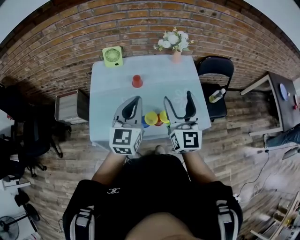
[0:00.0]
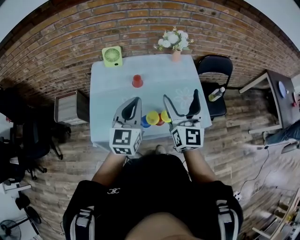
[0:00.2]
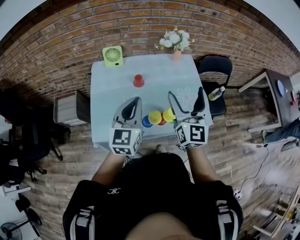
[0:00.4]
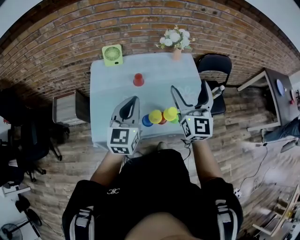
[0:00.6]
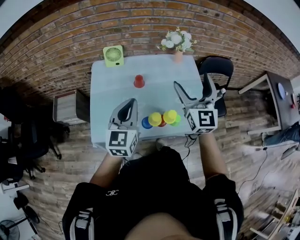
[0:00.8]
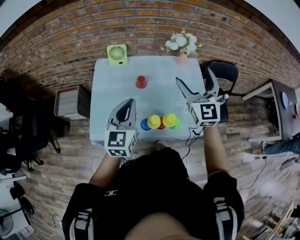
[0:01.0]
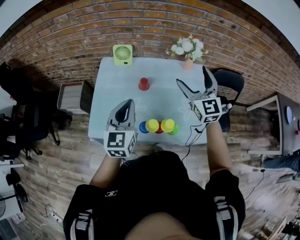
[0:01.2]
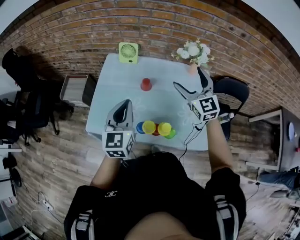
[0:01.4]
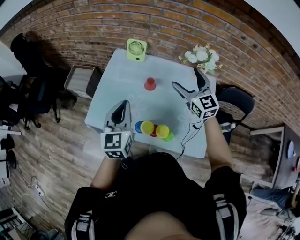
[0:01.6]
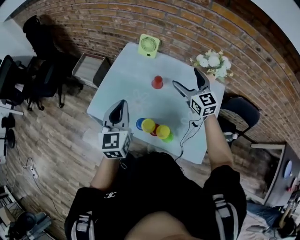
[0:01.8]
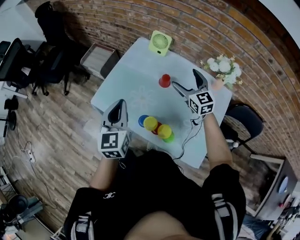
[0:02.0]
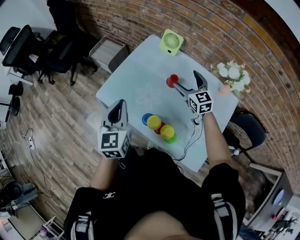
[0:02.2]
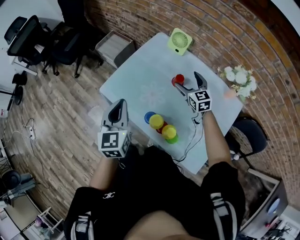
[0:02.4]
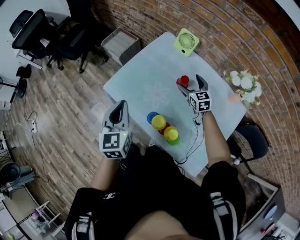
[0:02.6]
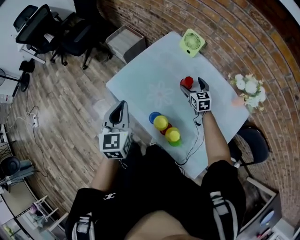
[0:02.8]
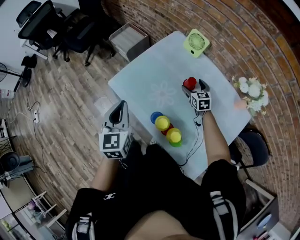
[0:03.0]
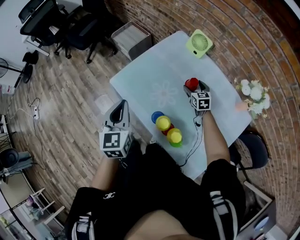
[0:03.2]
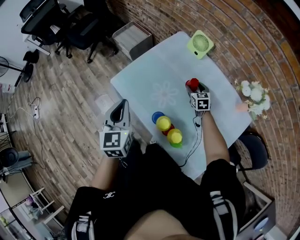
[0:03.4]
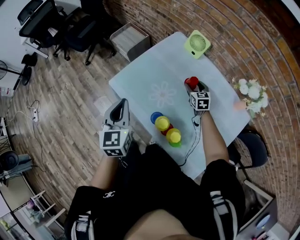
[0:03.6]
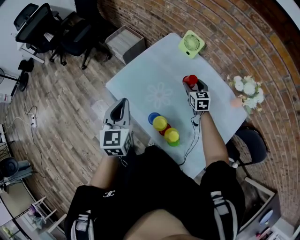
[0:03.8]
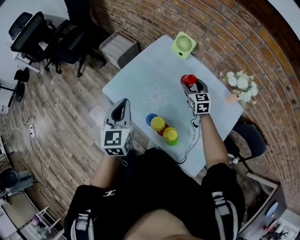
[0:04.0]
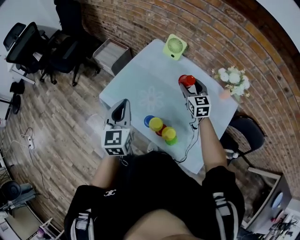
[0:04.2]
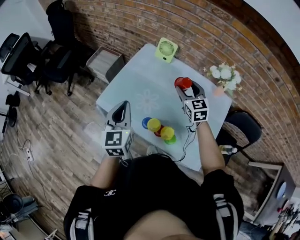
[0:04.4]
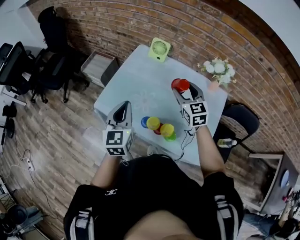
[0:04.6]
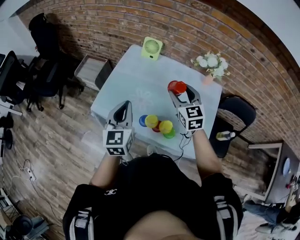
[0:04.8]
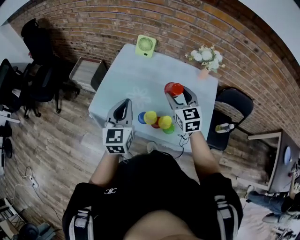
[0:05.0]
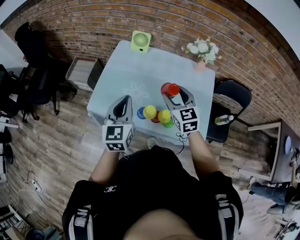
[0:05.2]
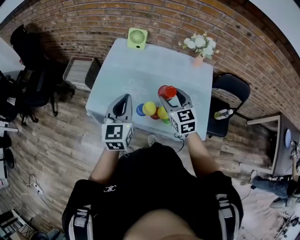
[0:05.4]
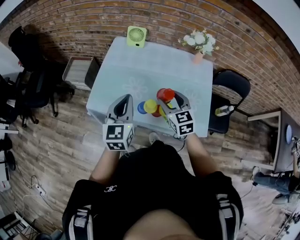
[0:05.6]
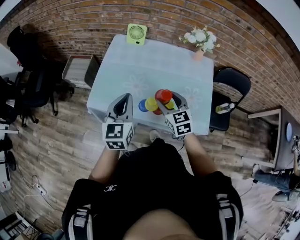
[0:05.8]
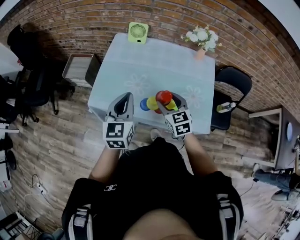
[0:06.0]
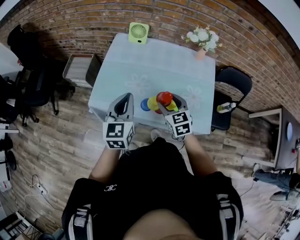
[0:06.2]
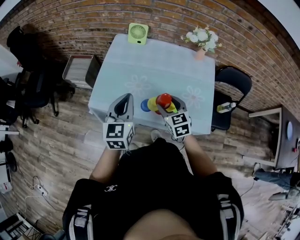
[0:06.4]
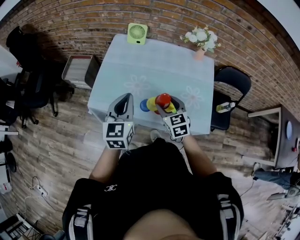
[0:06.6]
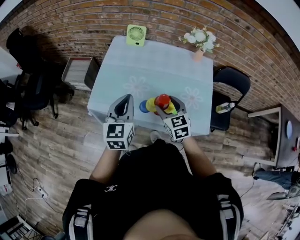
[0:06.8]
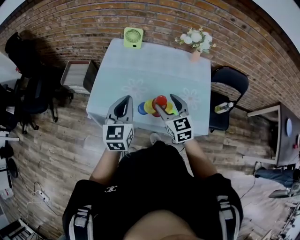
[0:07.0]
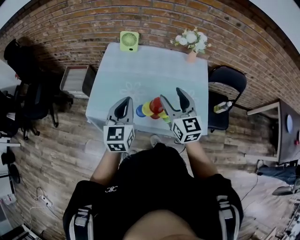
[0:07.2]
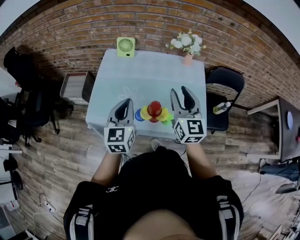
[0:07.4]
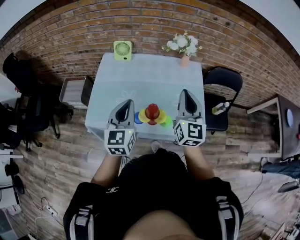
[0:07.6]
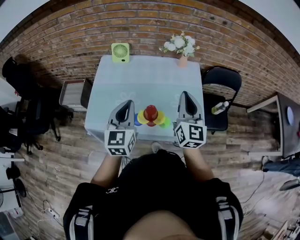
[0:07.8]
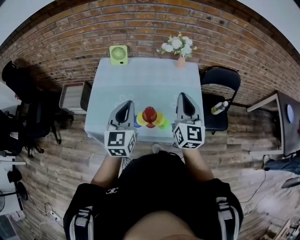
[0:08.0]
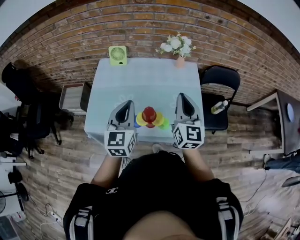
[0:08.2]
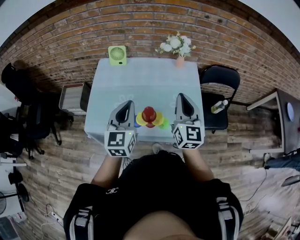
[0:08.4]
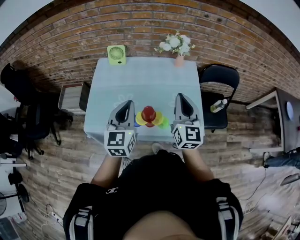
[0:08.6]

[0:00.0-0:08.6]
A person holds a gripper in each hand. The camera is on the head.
0:00.0 to 0:01.4: The right gripper shifts by roughly 20 cm, and changes its angle by approximately 40 degrees, while the left gripper changes place by roughly 5 cm, and changes its angle by roughly 20 degrees.
0:01.4 to 0:02.8: The right gripper goes roughly 25 cm downward, and swivels some 40 degrees, while the left gripper ends up approximately 15 cm from where it was, and swivels some 40 degrees.
0:02.8 to 0:04.4: The left gripper changes place by some 5 cm. Meanwhile the right gripper is displaced upward and backward by some 20 cm, and closes its fingers.
0:04.4 to 0:05.8: The right gripper shifts about 20 cm backward, while the left gripper changes its angle by approximately 20 degrees.
0:05.8 to 0:07.2: The right gripper moves upward, roughly 10 cm, and changes its angle by approximately 20 degrees.
0:07.2 to 0:08.6: The right gripper moves to the right, some 10 cm, rotates some 20 degrees, and closes up, while the left gripper goes about 5 cm to the right.

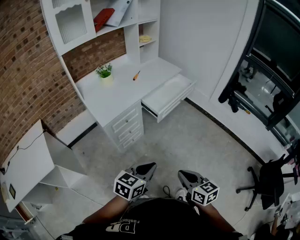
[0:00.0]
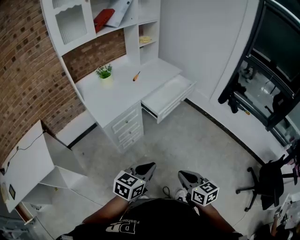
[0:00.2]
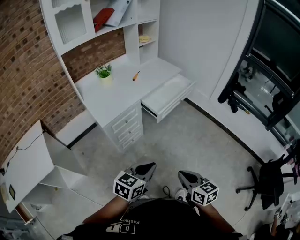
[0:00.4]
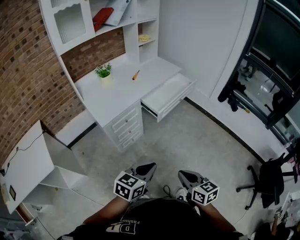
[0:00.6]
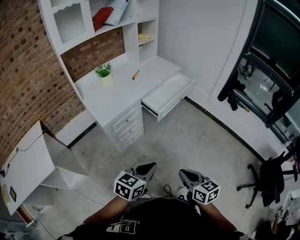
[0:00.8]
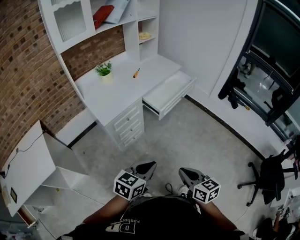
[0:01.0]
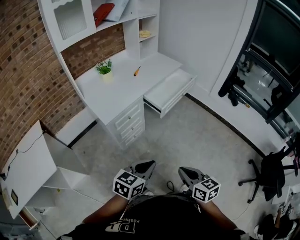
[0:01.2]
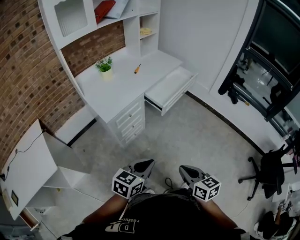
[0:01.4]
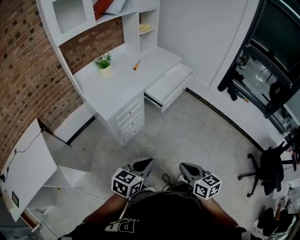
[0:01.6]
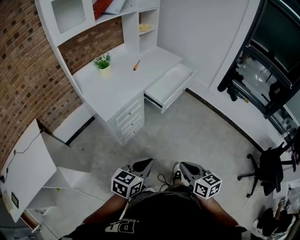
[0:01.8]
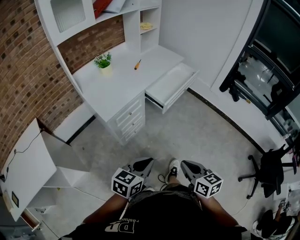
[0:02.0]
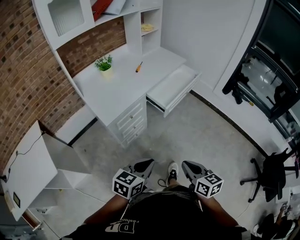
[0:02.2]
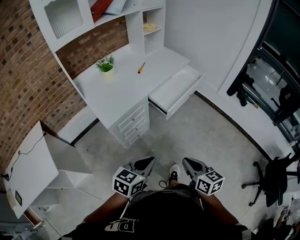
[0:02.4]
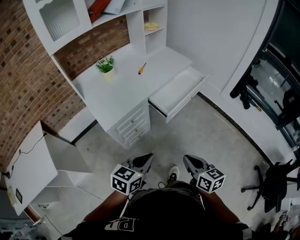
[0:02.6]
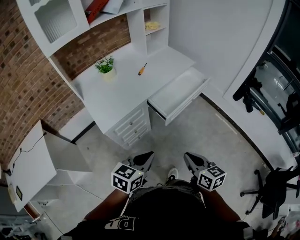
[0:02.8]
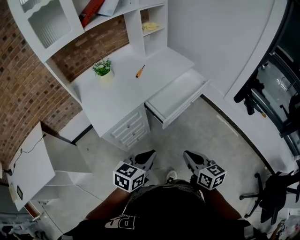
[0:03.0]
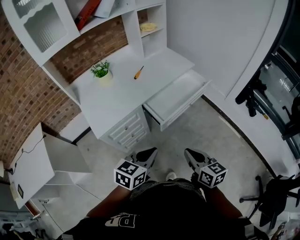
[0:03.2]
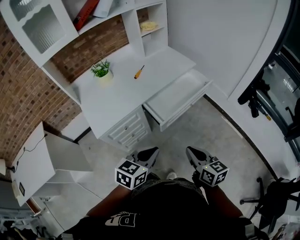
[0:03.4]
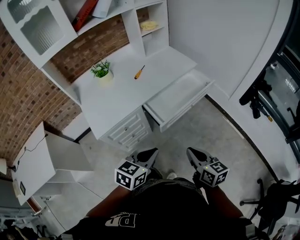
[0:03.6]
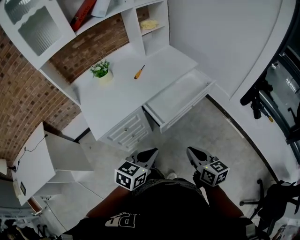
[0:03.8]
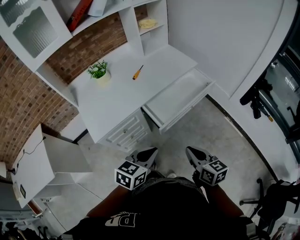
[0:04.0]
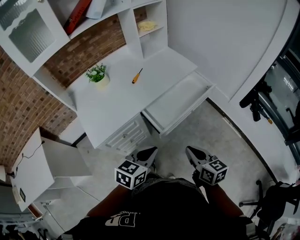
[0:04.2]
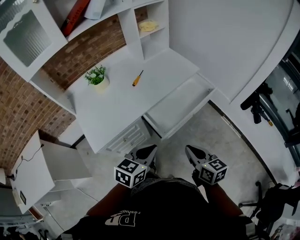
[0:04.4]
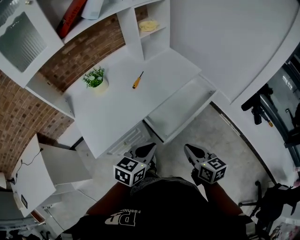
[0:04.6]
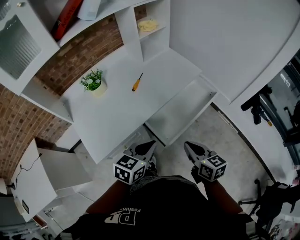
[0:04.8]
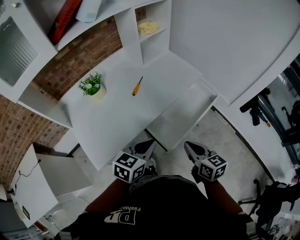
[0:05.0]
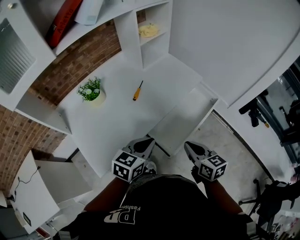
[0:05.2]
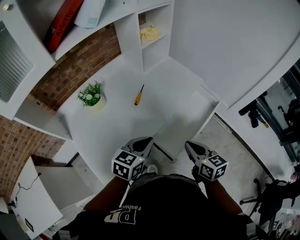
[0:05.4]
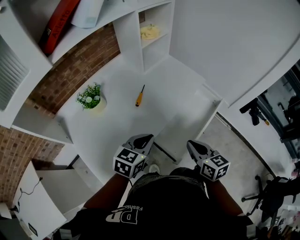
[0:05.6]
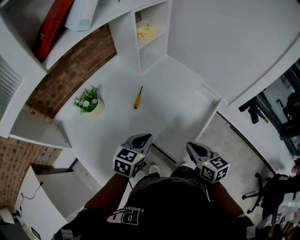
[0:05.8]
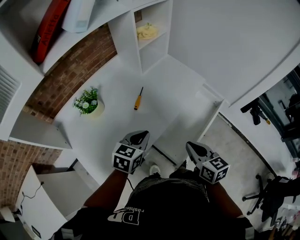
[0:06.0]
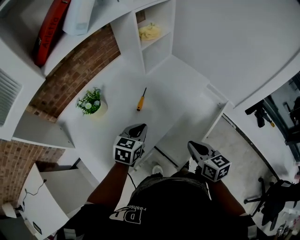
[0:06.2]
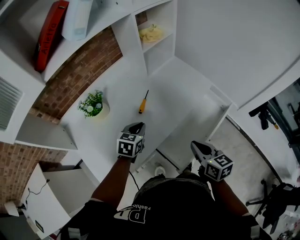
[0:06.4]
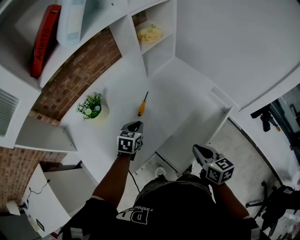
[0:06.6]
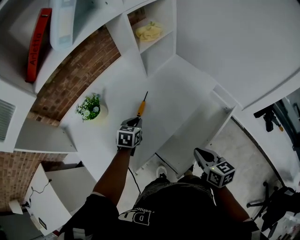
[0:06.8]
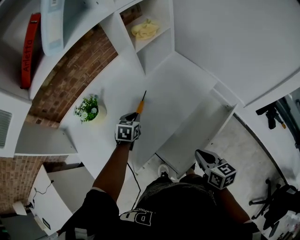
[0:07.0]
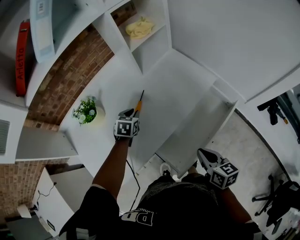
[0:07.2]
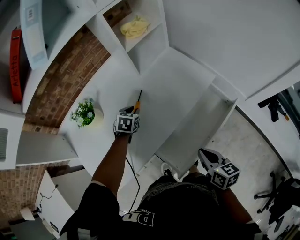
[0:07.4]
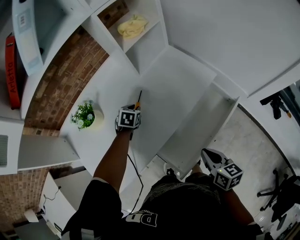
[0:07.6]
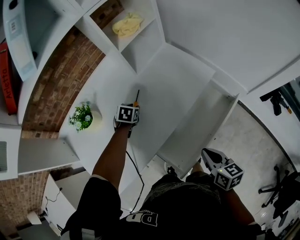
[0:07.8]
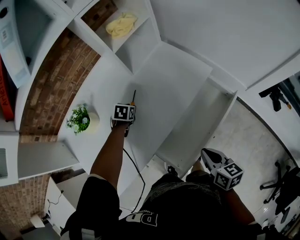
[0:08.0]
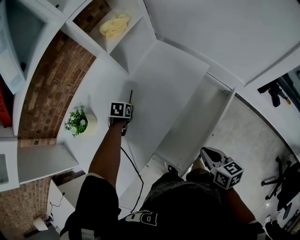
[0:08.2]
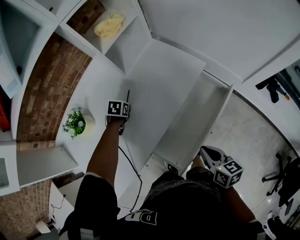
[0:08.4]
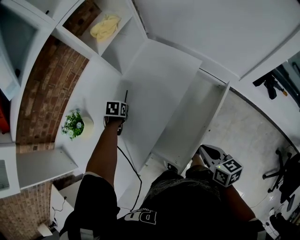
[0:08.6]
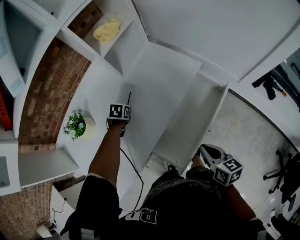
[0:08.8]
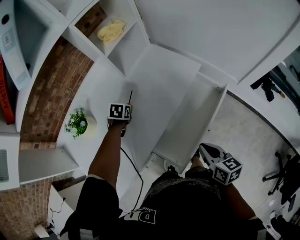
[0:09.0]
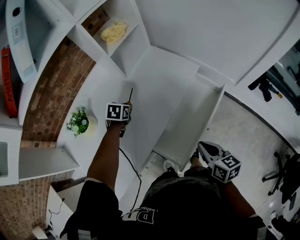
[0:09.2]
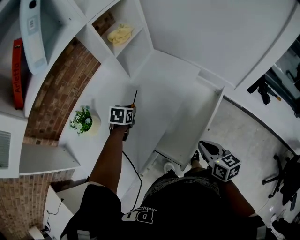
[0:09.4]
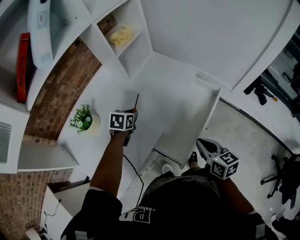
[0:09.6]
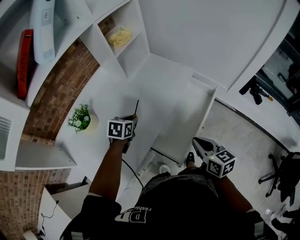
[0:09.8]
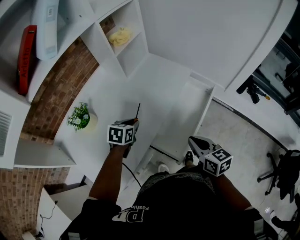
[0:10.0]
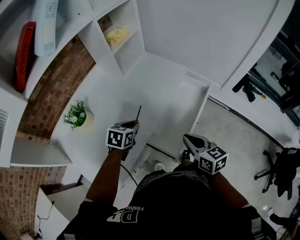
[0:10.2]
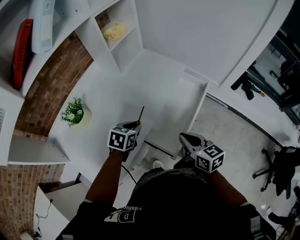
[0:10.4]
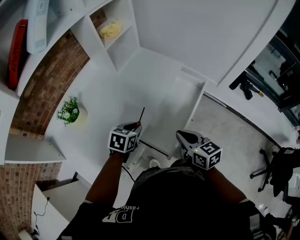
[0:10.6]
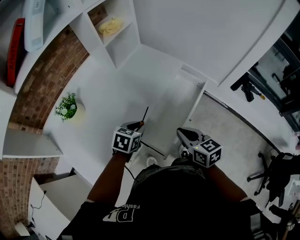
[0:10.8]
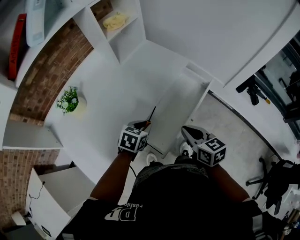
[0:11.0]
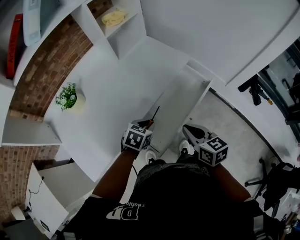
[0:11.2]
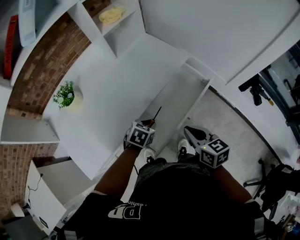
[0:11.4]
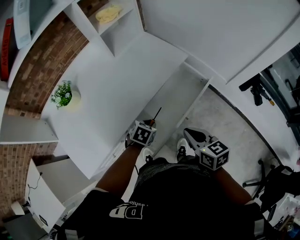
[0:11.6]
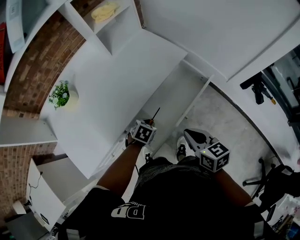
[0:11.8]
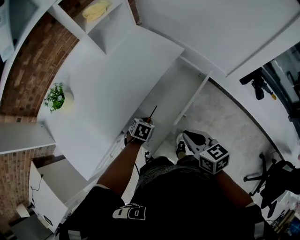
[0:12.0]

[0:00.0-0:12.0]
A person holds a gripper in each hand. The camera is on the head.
0:00.0 to 0:01.6: Both grippers travel together to the left, some 10 cm.
0:01.6 to 0:03.0: Both grippers travel together forward, about 25 cm.
0:03.0 to 0:04.4: Both grippers move forward, approximately 15 cm.
0:04.4 to 0:06.0: The two grippers go about 25 cm forward and to the left.
0:06.0 to 0:07.6: The left gripper shifts approximately 30 cm forward and downward, and rotates about 30 degrees; the right gripper moves to the right and downward, some 10 cm.
0:07.6 to 0:09.0: The grippers move only a little.
0:09.0 to 0:10.4: The right gripper shifts approximately 10 cm to the left, backward and upward. Meanwhile the left gripper moves backward and upward, about 25 cm, and turns by some 20 degrees.
0:10.4 to 0:12.0: The left gripper moves downward and to the right, roughly 25 cm. The right gripper goes some 15 cm to the right and downward.

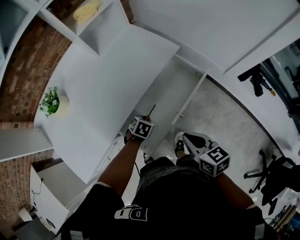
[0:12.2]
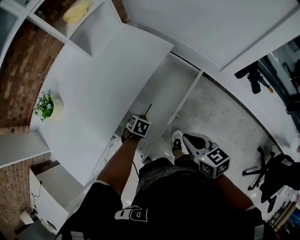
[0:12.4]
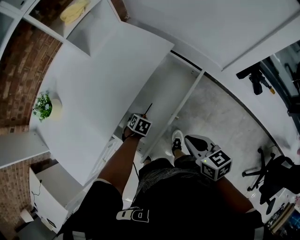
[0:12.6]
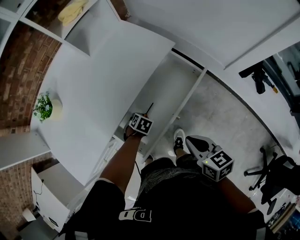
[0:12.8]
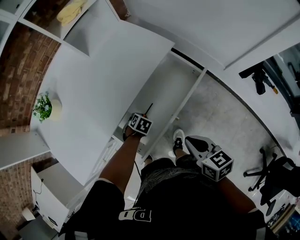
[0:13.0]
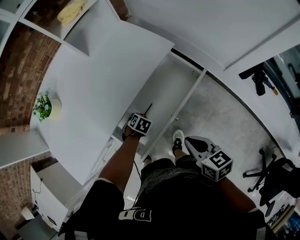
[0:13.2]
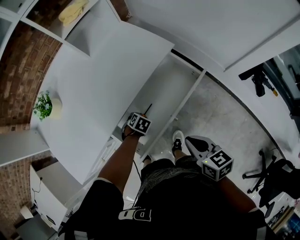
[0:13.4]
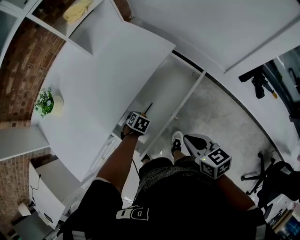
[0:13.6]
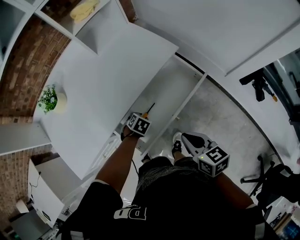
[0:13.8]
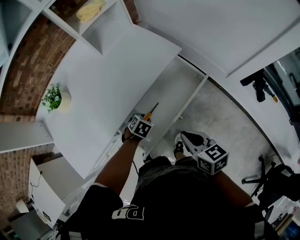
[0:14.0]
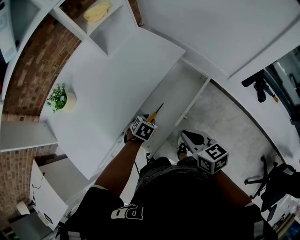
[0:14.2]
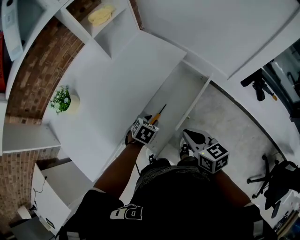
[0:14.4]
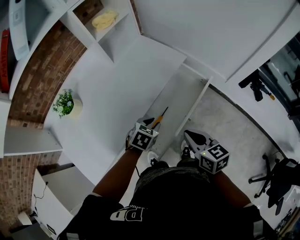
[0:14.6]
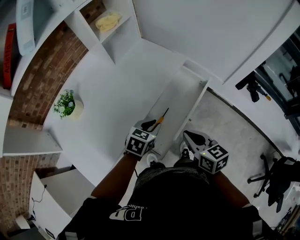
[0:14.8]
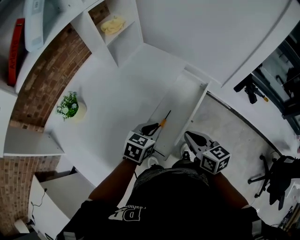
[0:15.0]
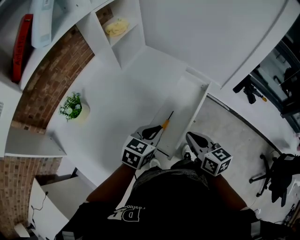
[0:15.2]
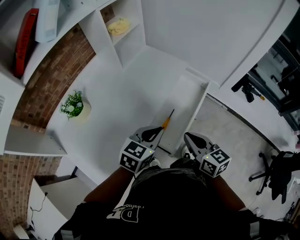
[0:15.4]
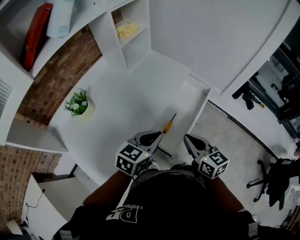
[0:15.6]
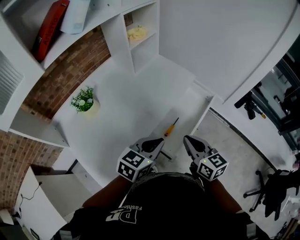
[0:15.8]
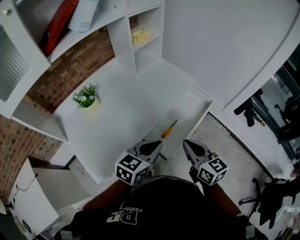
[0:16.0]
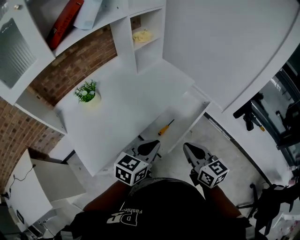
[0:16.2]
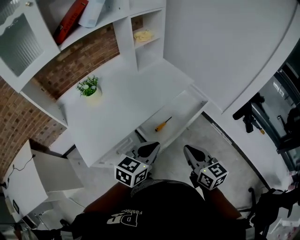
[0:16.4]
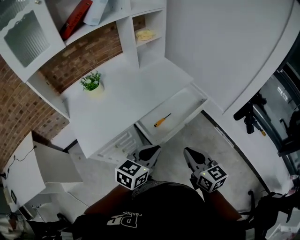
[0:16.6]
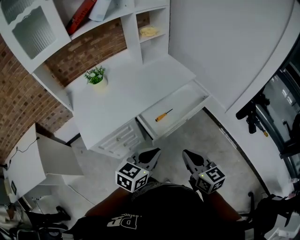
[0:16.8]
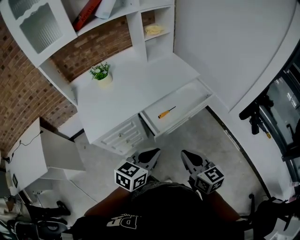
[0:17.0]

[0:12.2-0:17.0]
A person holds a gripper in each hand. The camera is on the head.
0:13.8 to 0:15.4: The left gripper is displaced upward by about 35 cm, tips its fingers upward by approximately 50 degrees, and closes. The right gripper shifts by some 20 cm, and swivels roughly 20 degrees.
0:15.4 to 0:17.0: Both grippers move backward and to the right, roughly 25 cm. The right gripper swivels some 20 degrees. The left gripper swivels roughly 30 degrees.
